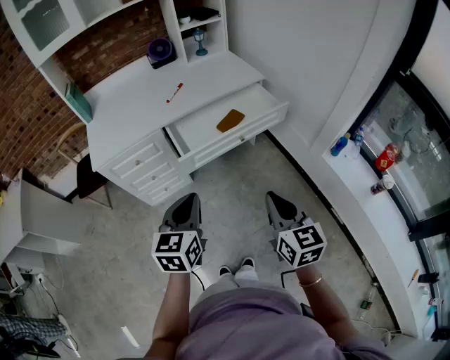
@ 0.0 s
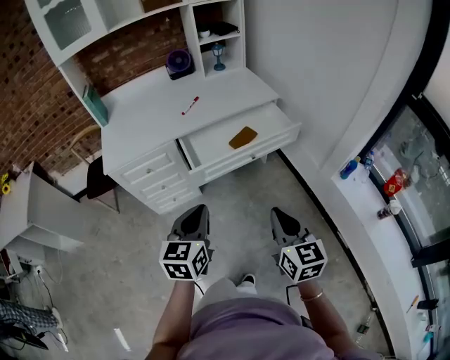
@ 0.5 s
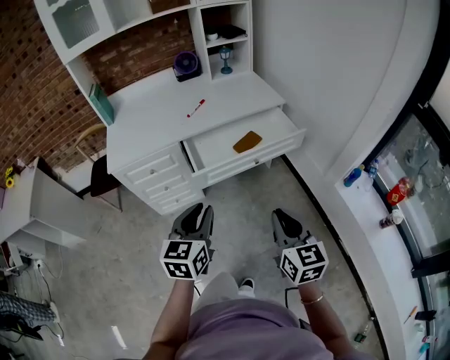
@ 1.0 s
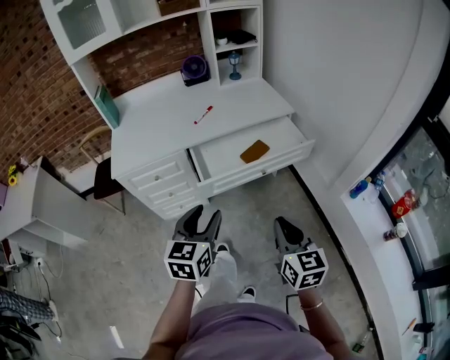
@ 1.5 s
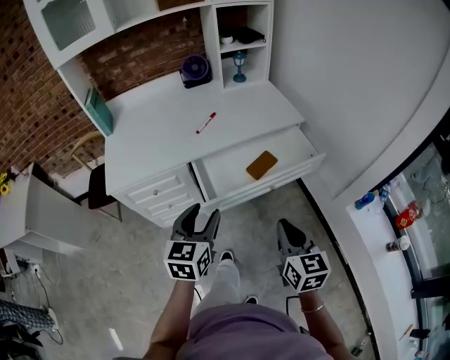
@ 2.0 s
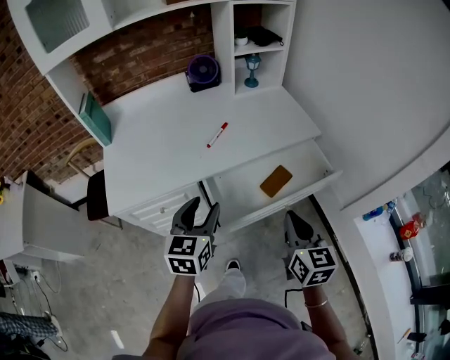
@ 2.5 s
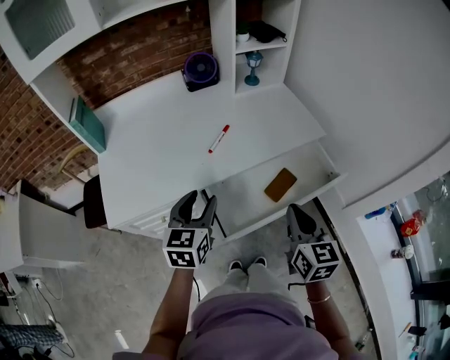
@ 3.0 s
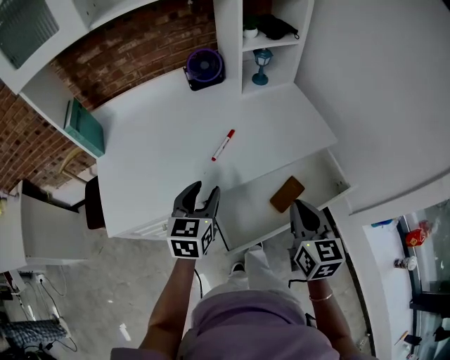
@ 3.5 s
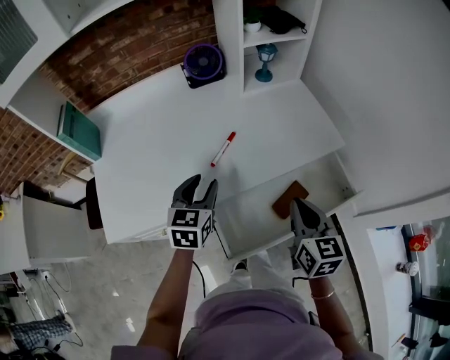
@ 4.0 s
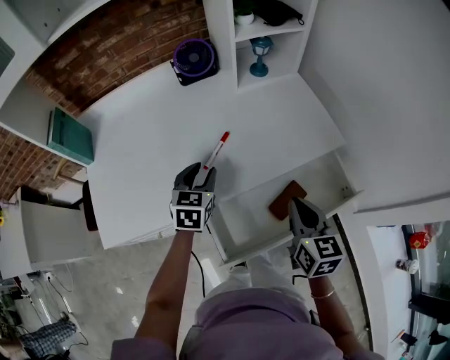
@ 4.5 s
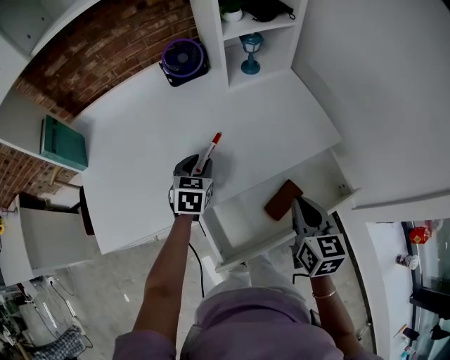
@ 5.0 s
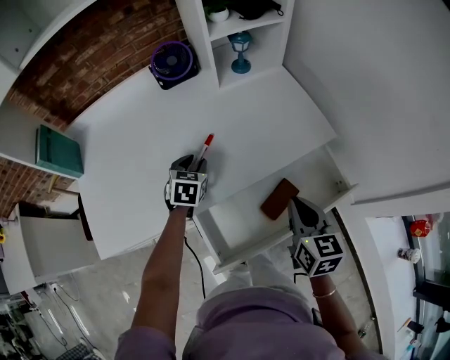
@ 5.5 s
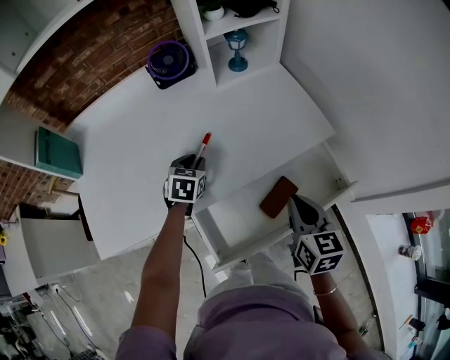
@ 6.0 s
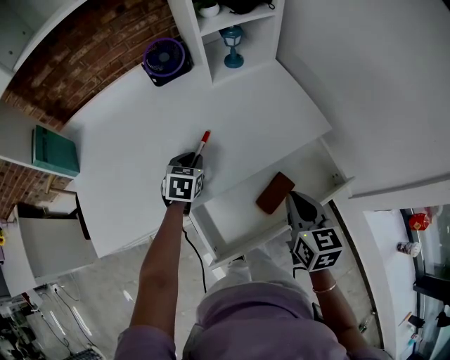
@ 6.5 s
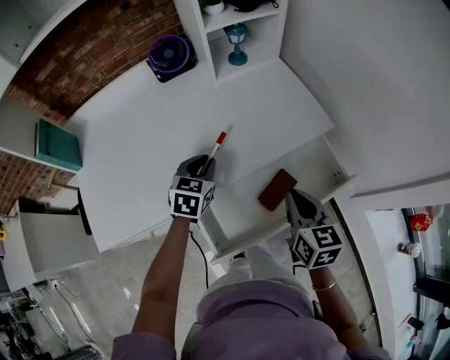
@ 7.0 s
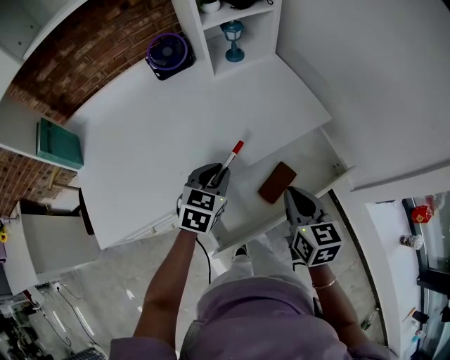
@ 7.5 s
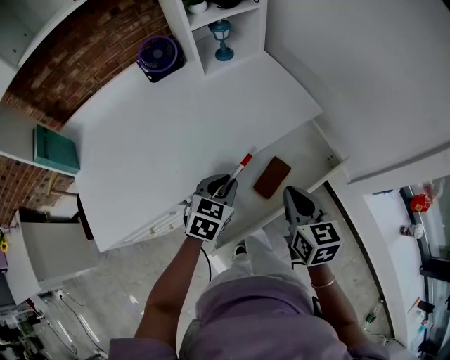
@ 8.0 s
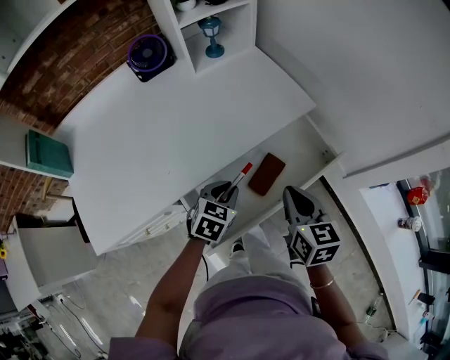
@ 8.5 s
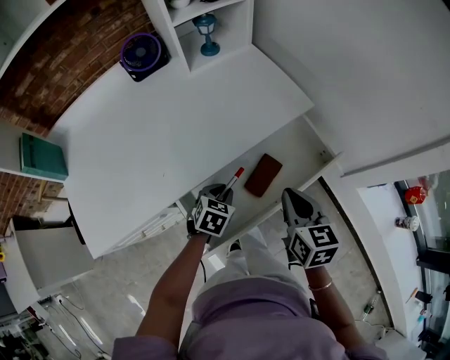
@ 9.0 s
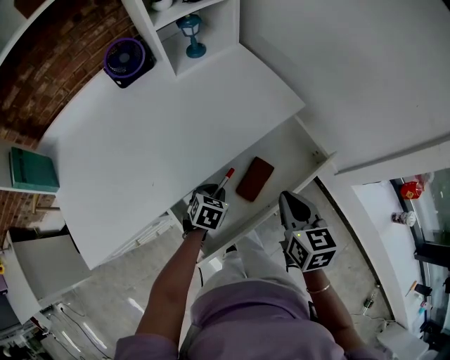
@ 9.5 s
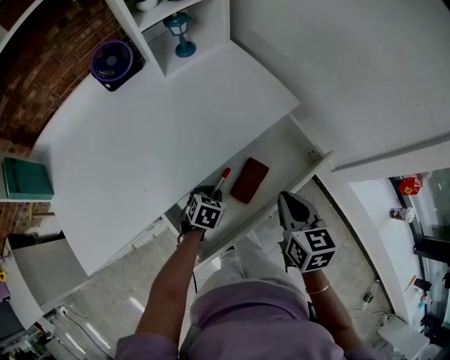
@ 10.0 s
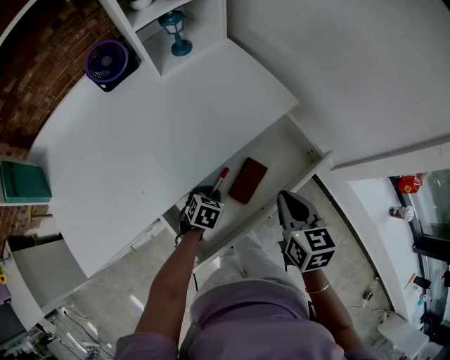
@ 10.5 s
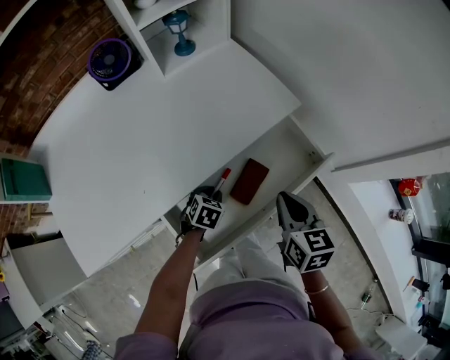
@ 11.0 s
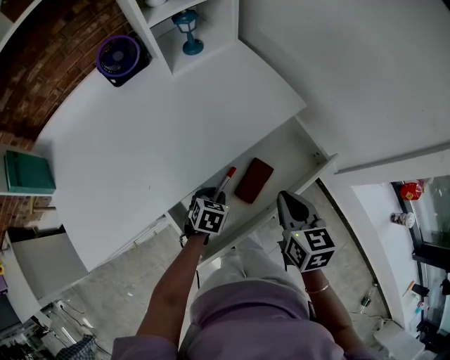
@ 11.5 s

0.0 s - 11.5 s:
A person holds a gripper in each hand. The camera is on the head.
0.0 s - 2.0 s: The grippers both shift forward by approximately 15 cm. The left gripper opens its fingers.
2.0 s - 4.0 s: Both grippers move forward, roughly 30 cm.
4.0 s - 6.0 s: The left gripper moves forward and downward, about 15 cm, and turns by some 20 degrees; the right gripper moves to the right, roughly 5 cm.
6.0 s - 7.5 s: The left gripper travels backward, to the right and upward by roughly 15 cm.
7.5 s - 9.5 s: The left gripper heads downward, covering about 15 cm, and turns by approximately 20 degrees; the right gripper moves to the right, about 5 cm.
9.5 s - 11.5 s: The grippers make only small movements.

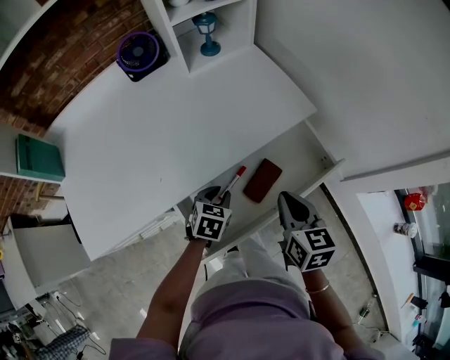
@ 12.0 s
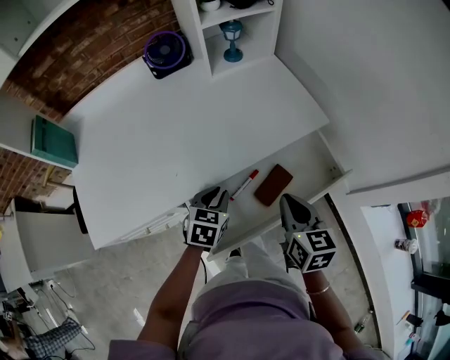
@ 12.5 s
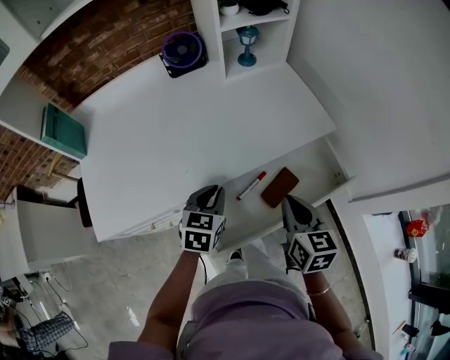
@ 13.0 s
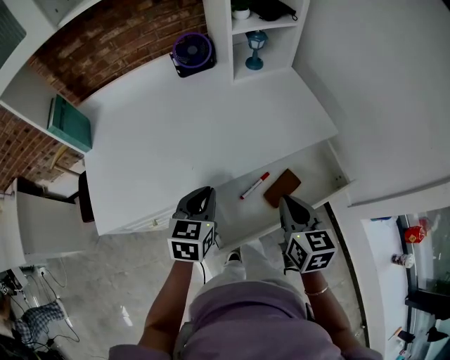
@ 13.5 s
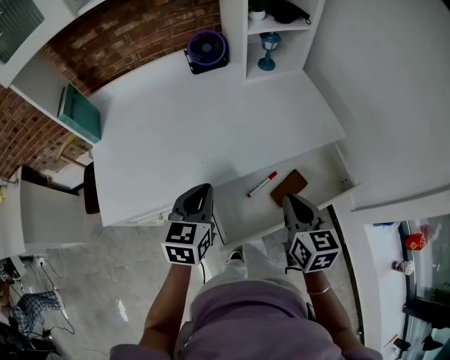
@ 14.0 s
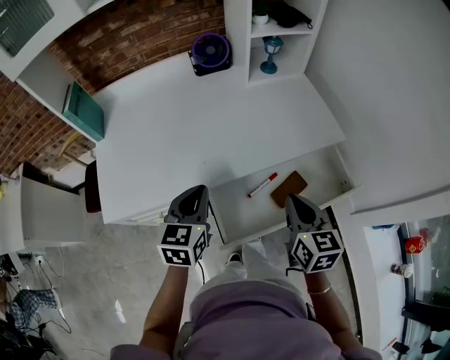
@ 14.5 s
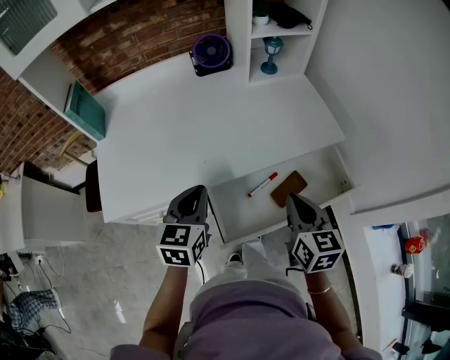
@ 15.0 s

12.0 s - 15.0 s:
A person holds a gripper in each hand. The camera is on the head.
12.0 s - 13.5 s: The left gripper moves upward and to the left, approximately 20 cm, and turns by approximately 30 degrees. The right gripper is displaced to the left by about 5 cm.
13.5 s - 15.0 s: The left gripper shifts about 5 cm to the left.

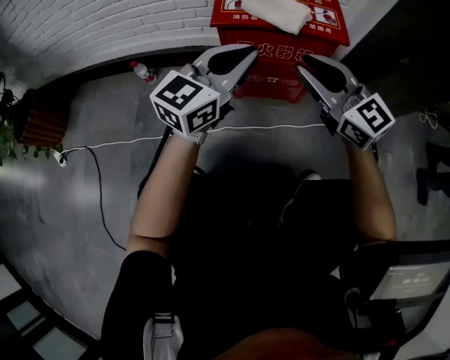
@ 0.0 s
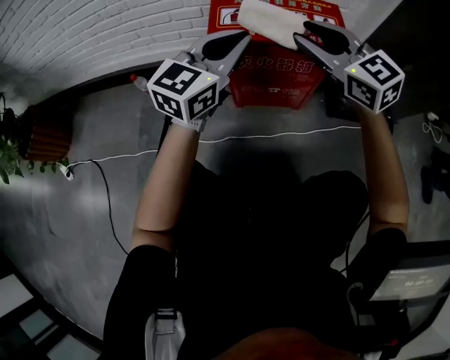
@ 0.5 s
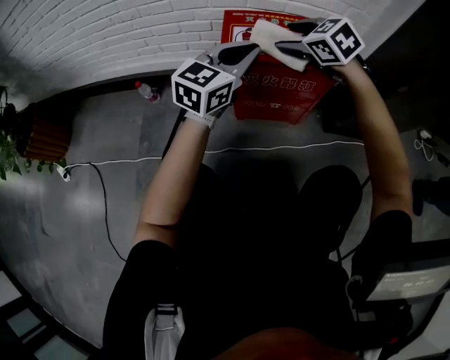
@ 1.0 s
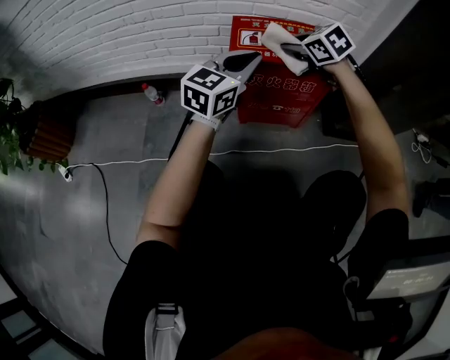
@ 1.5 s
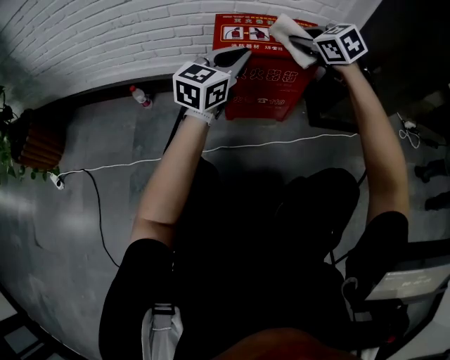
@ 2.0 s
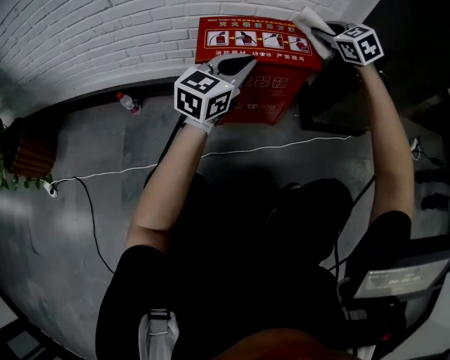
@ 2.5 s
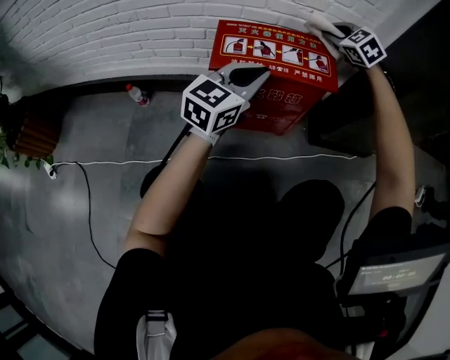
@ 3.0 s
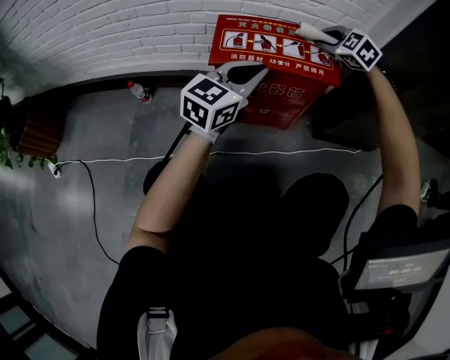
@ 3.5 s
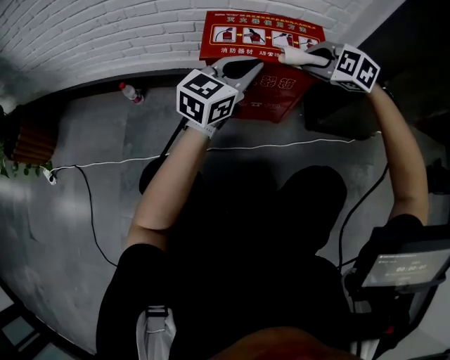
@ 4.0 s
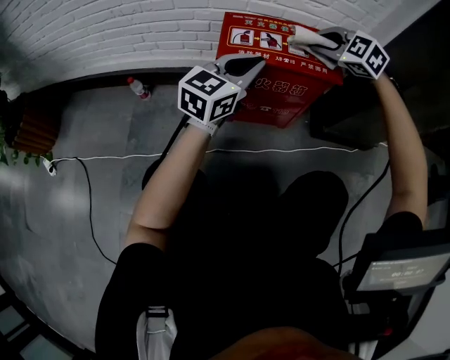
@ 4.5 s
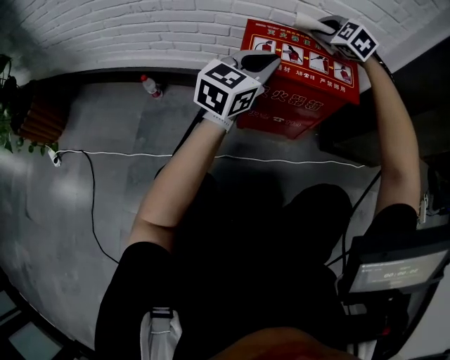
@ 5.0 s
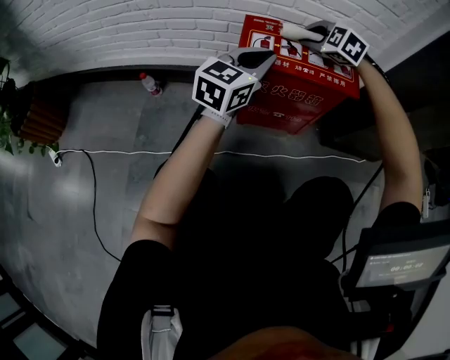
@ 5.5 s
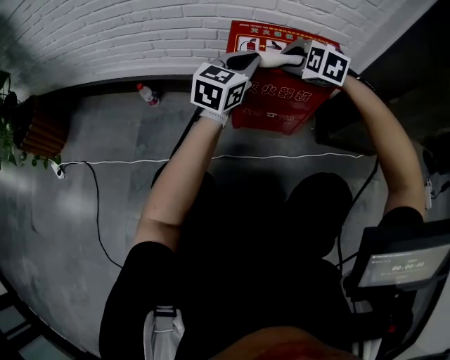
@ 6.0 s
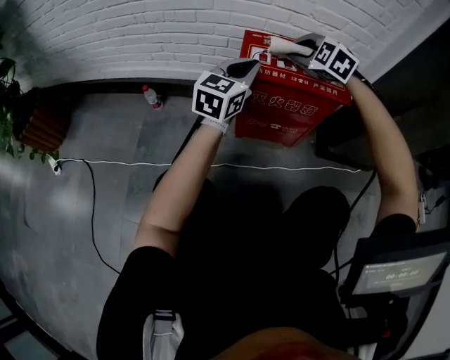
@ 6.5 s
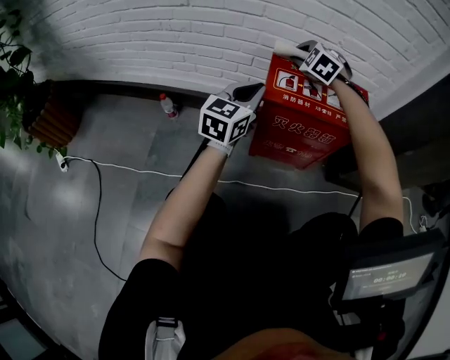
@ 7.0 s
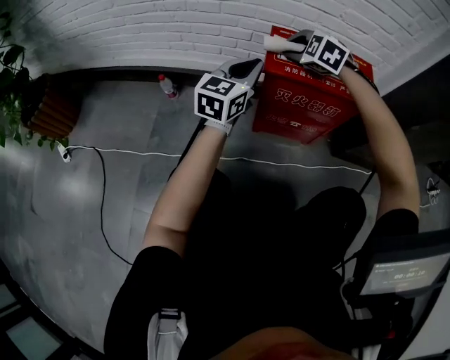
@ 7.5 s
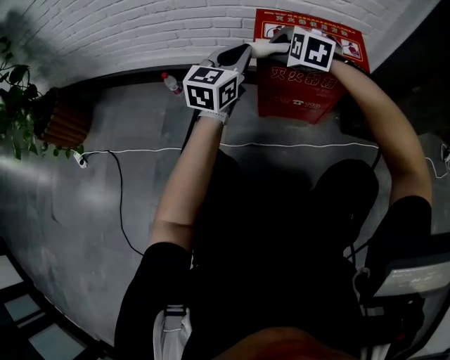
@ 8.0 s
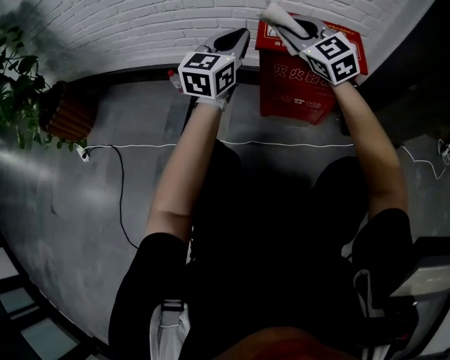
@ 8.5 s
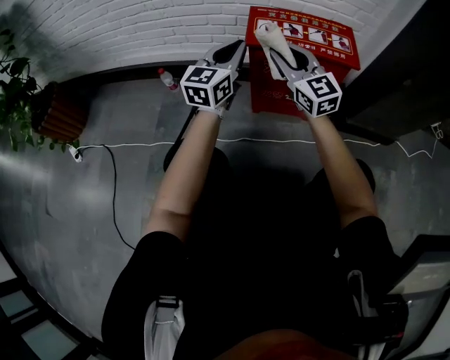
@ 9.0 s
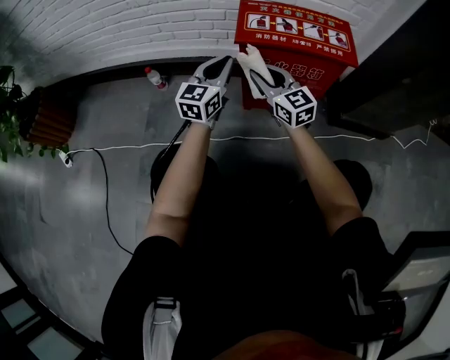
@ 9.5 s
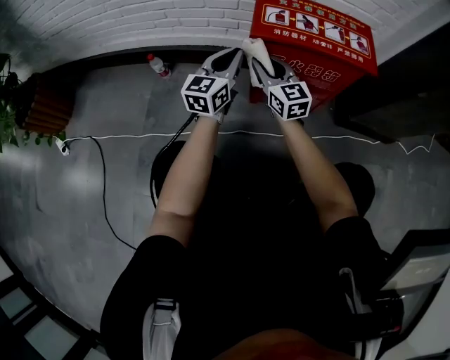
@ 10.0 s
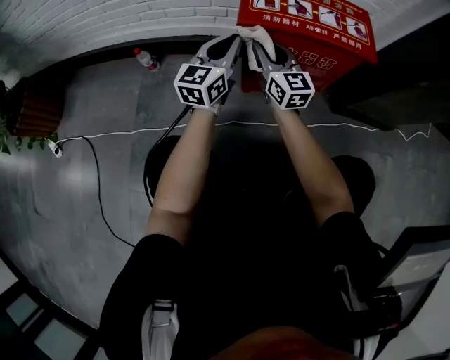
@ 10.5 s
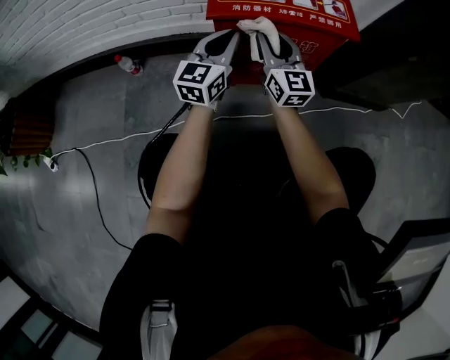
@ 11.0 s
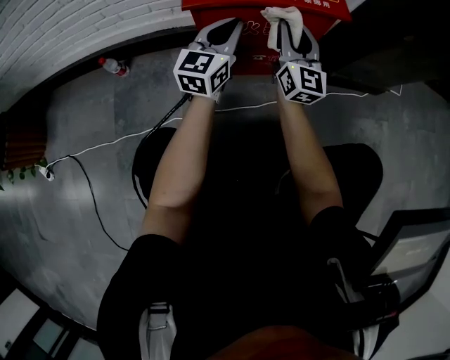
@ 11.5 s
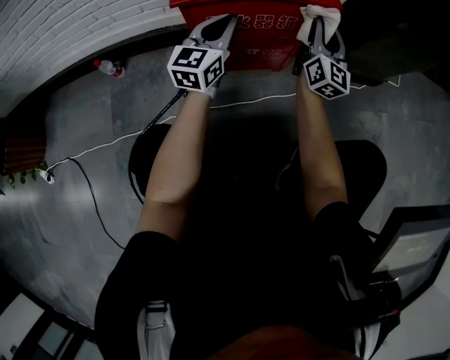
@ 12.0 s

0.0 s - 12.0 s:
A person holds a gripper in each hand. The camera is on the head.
0.0 s - 2.0 s: The right gripper is displaced forward by roughly 15 cm, tips its fingers downward by roughly 40 degrees, and opens and closes again; the left gripper goes approximately 5 cm forward.
2.0 s - 4.0 s: The right gripper travels downward by approximately 10 cm, goes forward and returns, about 20 cm each way, and swivels some 30 degrees, while the left gripper shifts some 5 cm to the right.
4.0 s - 6.0 s: The right gripper goes about 10 cm to the left, and travels forward and back again, approximately 15 cm each way, while the left gripper shifts roughly 5 cm to the left.
6.0 s - 8.0 s: Both grippers travel together to the left, about 10 cm. The right gripper moves about 15 cm forward and comes back.
8.0 s - 10.0 s: Both grippers travel together downward, approximately 10 cm. The right gripper angles its fingers upward, by roughly 50 degrees.
10.0 s - 12.0 s: The left gripper ends up roughly 15 cm from where it was; the right gripper ends up some 30 cm from where it was, and rotates roughly 50 degrees.
